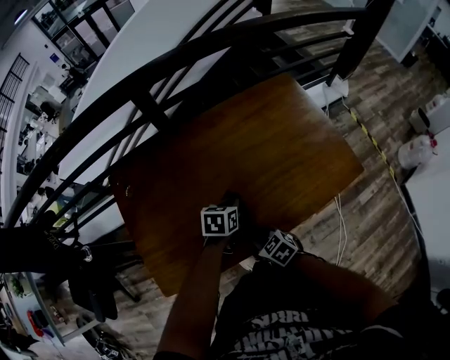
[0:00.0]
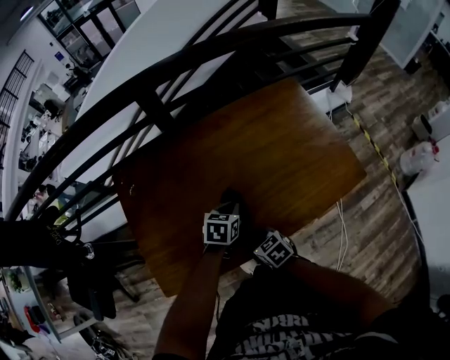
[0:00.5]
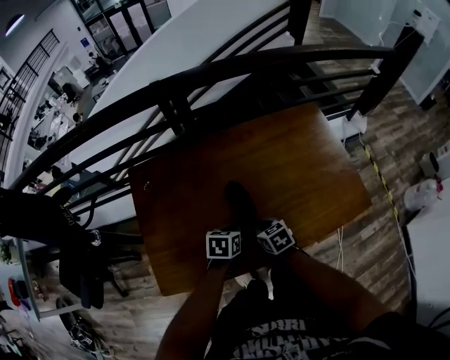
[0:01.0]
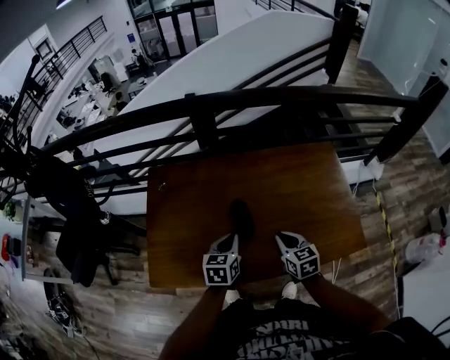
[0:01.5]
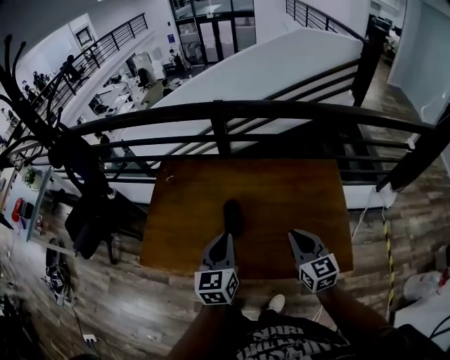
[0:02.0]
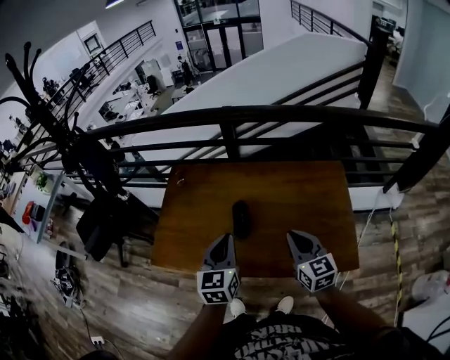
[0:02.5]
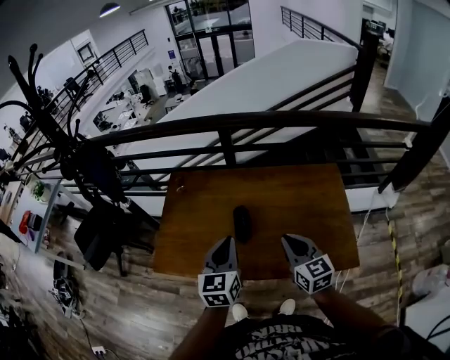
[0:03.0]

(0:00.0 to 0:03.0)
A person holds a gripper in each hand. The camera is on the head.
0:00.0 - 0:01.5: The left gripper shifts roughly 10 cm upward, and turns by about 30 degrees. The right gripper moves upward, forward and to the right, roughly 20 cm, and rotates approximately 20 degrees.
0:01.5 - 0:03.0: The two grippers go about 20 cm upward and backward. The left gripper turns by about 30 degrees, while the right gripper turns by approximately 20 degrees.

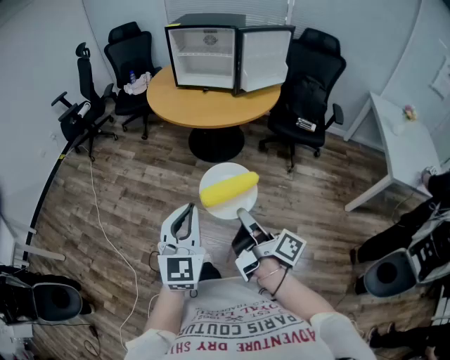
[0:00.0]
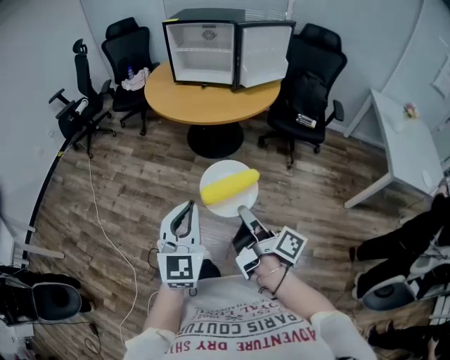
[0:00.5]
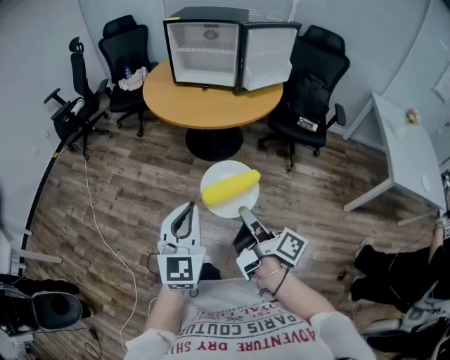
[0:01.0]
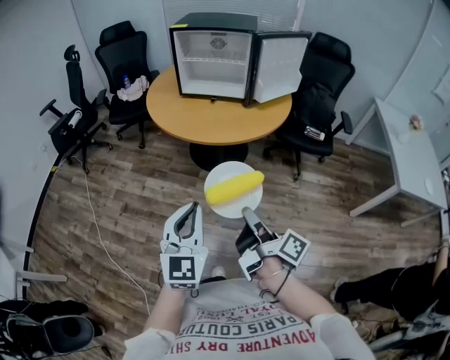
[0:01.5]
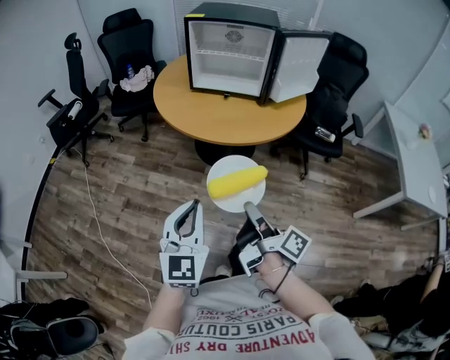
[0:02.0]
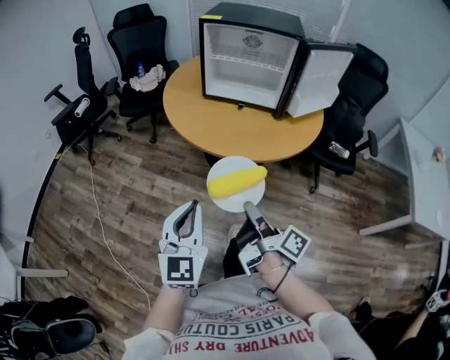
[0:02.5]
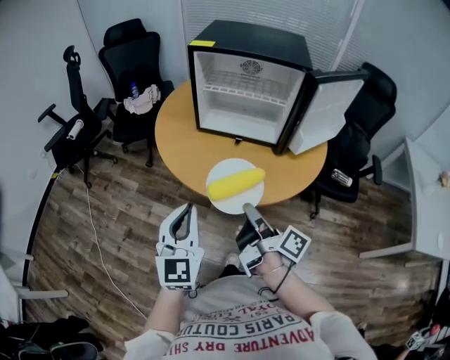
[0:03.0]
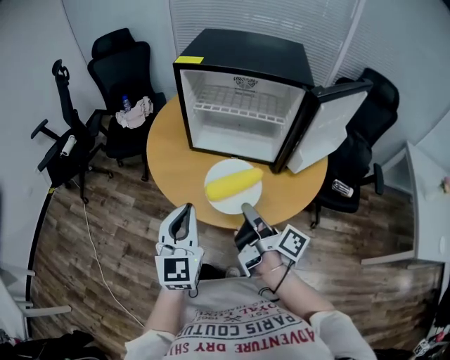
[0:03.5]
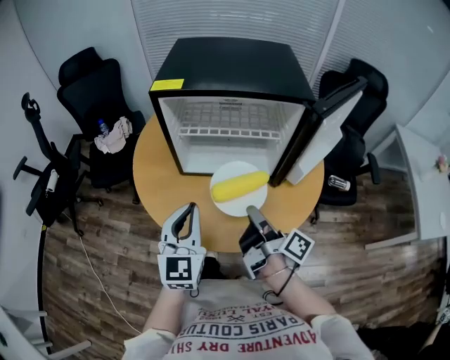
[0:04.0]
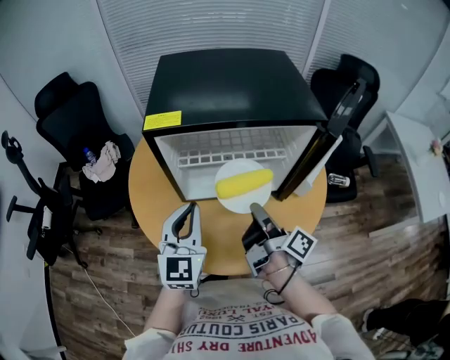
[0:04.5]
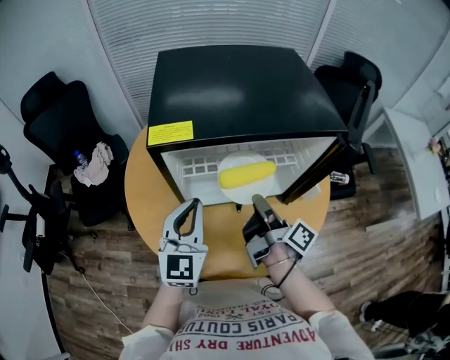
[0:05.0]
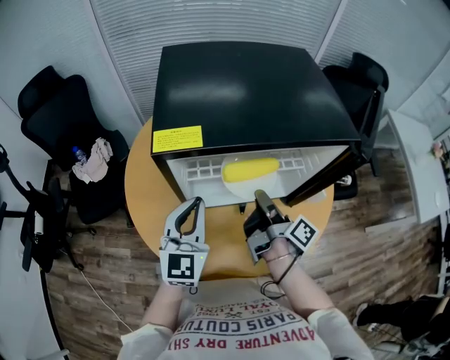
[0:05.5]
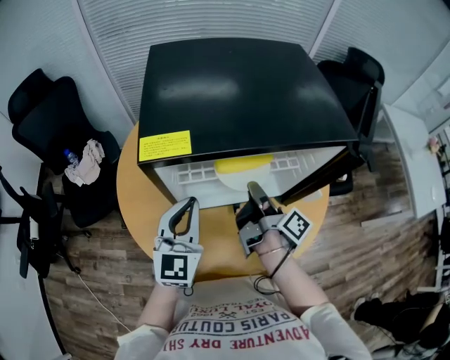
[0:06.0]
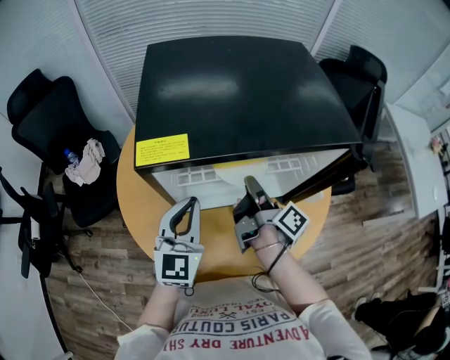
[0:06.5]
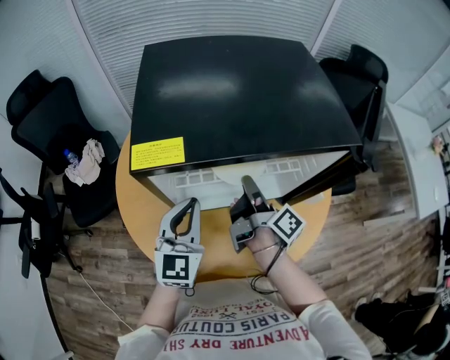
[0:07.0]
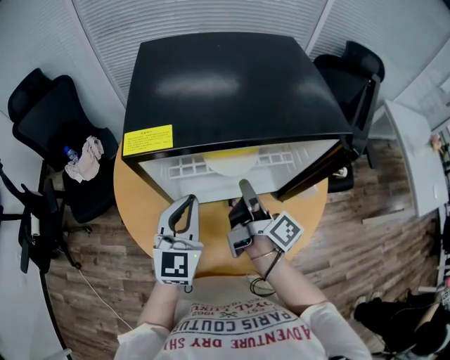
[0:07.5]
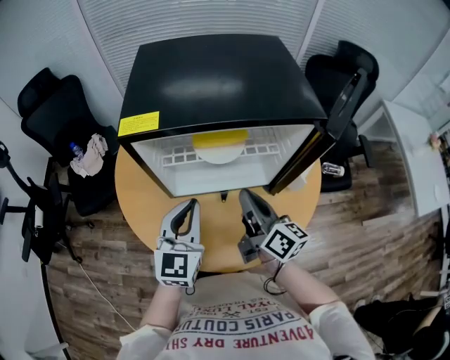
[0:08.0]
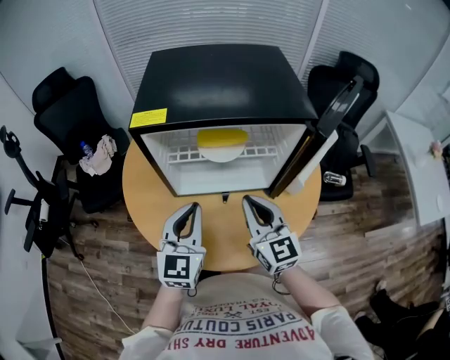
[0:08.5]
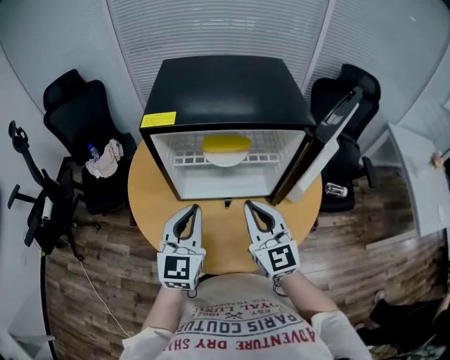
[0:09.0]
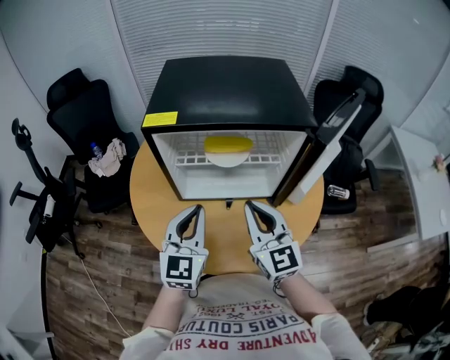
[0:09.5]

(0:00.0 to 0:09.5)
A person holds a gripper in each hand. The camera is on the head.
0:00.0 - 0:02.0: The left gripper changes place by some 25 cm.
0:02.0 - 0:04.0: The left gripper moves some 50 cm.
0:04.0 - 0:05.5: The left gripper moves approximately 20 cm.
0:07.5 - 0:09.5: The left gripper moves approximately 10 cm.

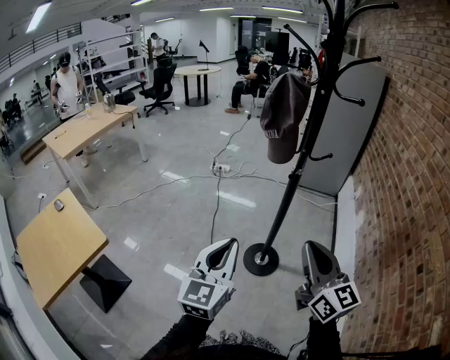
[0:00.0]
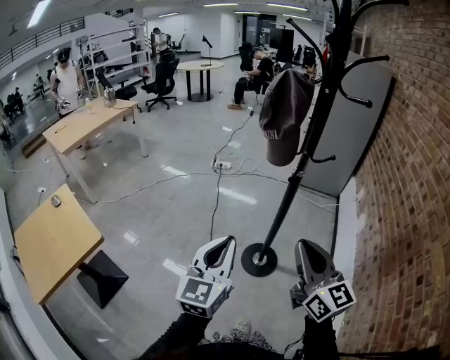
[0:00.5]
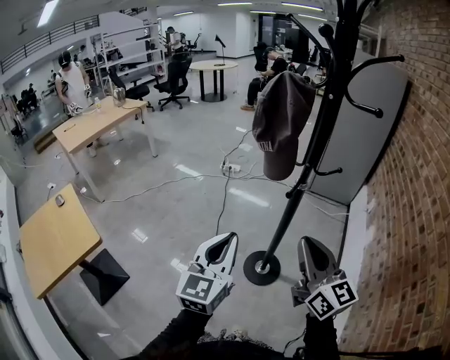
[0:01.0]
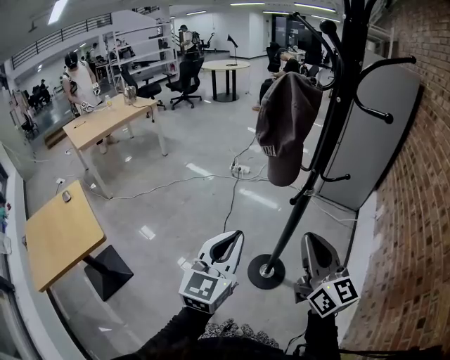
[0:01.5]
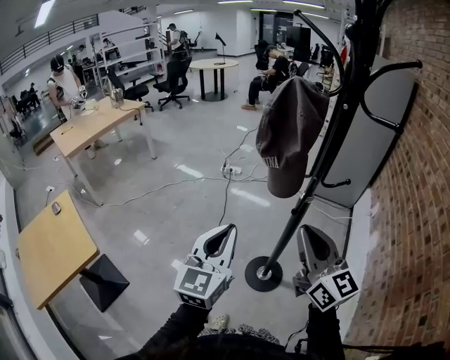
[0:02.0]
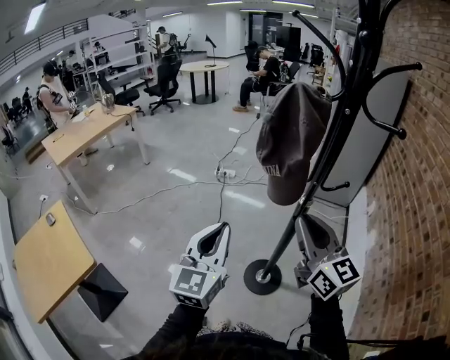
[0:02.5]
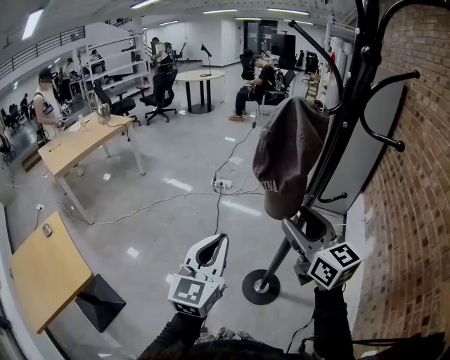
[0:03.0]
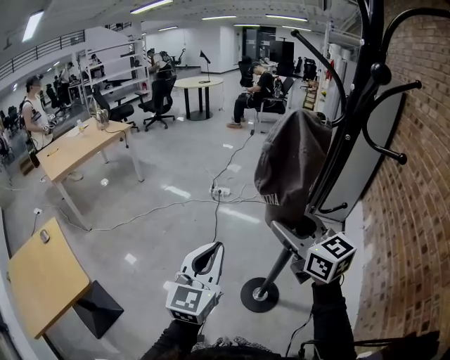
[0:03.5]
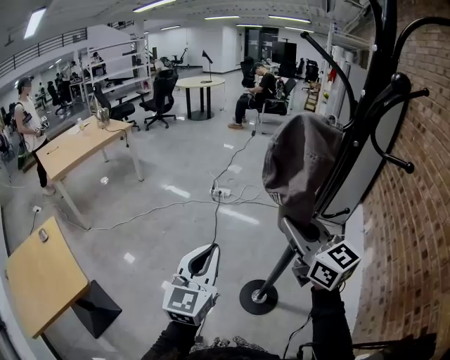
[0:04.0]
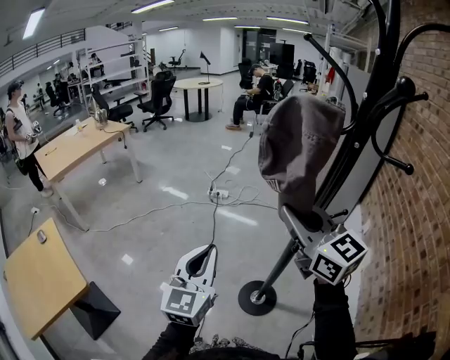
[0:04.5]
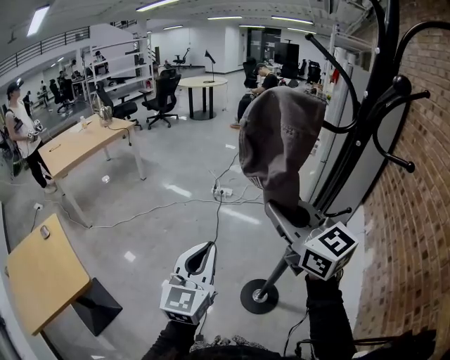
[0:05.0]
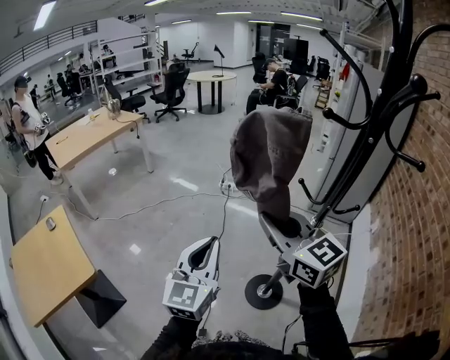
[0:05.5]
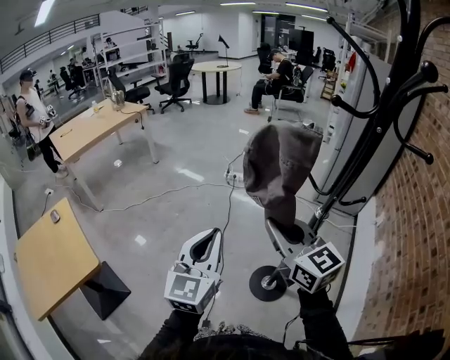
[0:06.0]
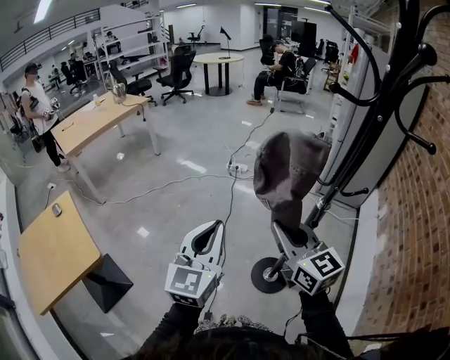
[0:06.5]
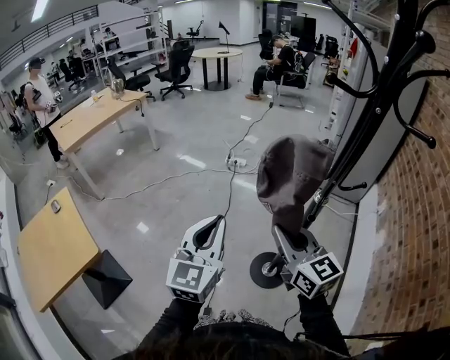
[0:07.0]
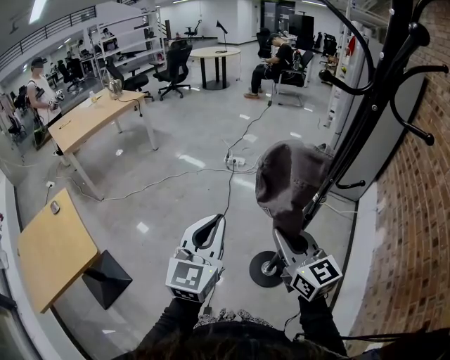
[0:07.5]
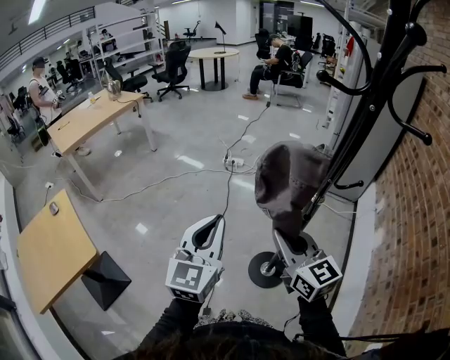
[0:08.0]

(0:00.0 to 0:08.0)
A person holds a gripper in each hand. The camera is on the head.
0:00.0 - 0:02.0: The two grippers go approximately 20 cm forward.
0:02.0 - 0:04.0: The right gripper is displaced forward by about 10 cm, and opens, then closes again. The left gripper shifts roughly 5 cm forward.
0:04.0 - 0:06.0: The right gripper moves to the left, approximately 10 cm.
0:06.0 - 0:08.0: The right gripper travels downward by some 5 cm.

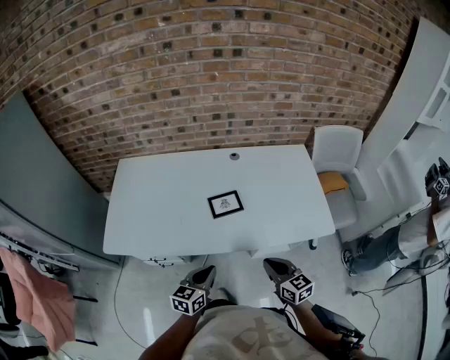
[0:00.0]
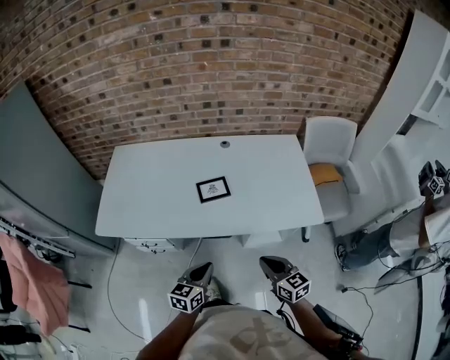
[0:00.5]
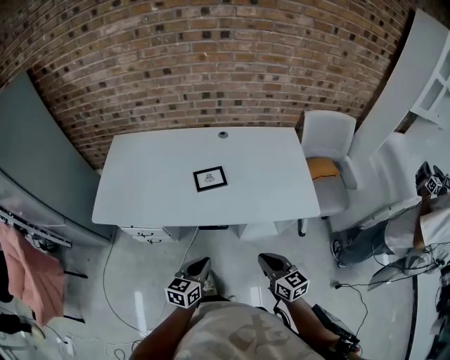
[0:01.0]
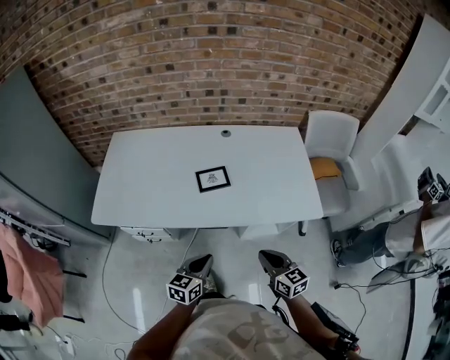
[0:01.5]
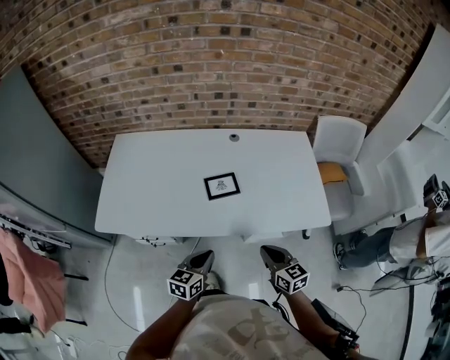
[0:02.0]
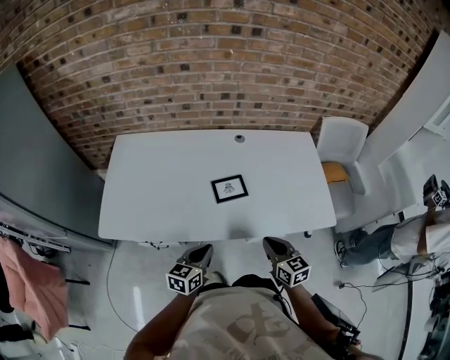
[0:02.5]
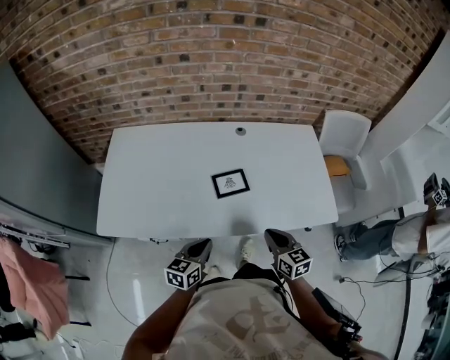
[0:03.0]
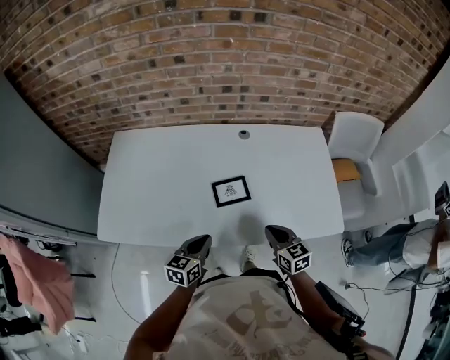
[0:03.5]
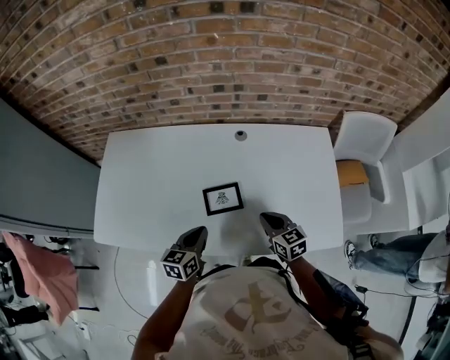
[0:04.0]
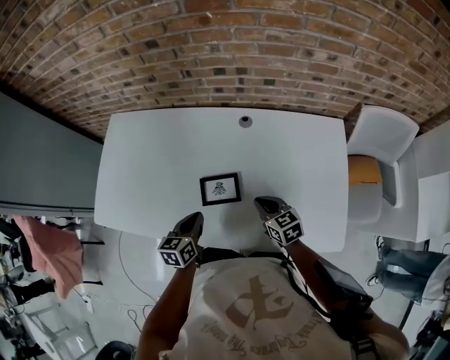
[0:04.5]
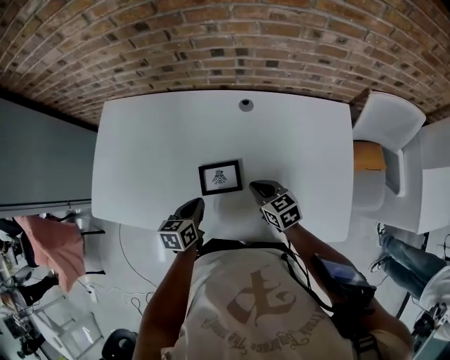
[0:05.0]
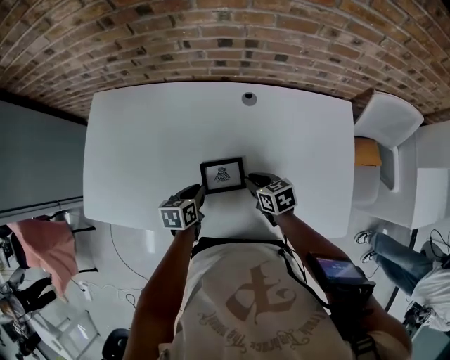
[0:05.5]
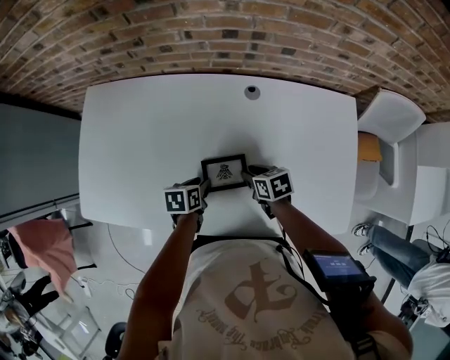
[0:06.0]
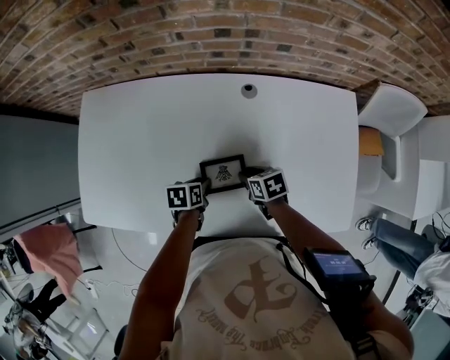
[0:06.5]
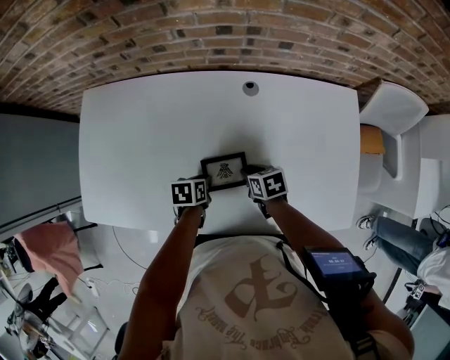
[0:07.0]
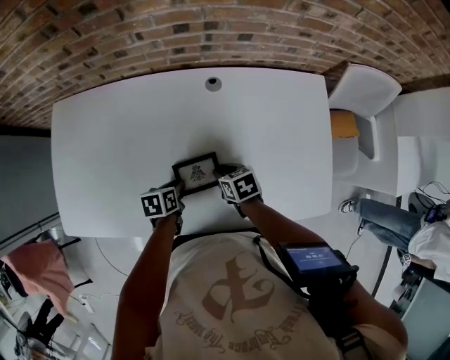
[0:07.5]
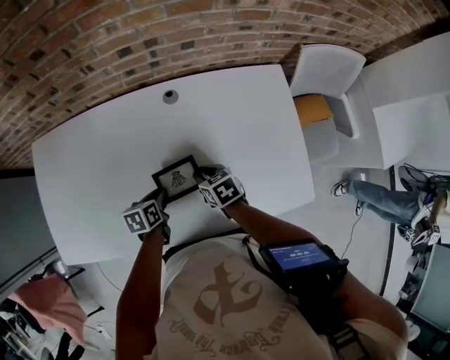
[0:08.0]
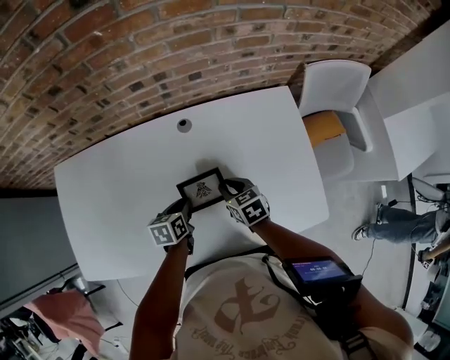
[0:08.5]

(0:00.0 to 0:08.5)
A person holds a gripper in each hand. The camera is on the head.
0:00.0 - 0:02.0: The right gripper travels backward and back again, some 10 cm each way; the left gripper goes backward and returns, about 10 cm each way.
0:02.0 - 0:04.0: The grippers both shift forward by roughly 20 cm.
0:04.0 - 0:06.5: The grippers both shift downward and forward by approximately 20 cm. The right gripper changes its angle by about 40 degrees, and opens. Meanwhile the left gripper tilts its fingers about 30 degrees downward, and opens its fingers.
0:06.5 - 0:08.5: The two grippers go some 10 cm to the right and upward. The right gripper turns by about 20 degrees.
